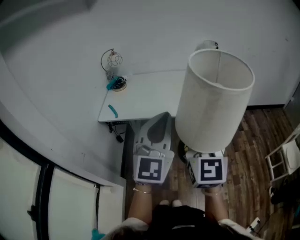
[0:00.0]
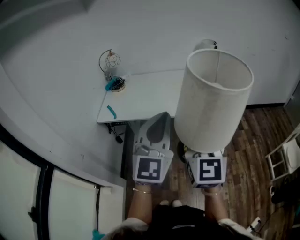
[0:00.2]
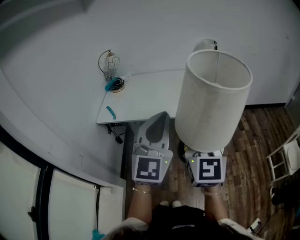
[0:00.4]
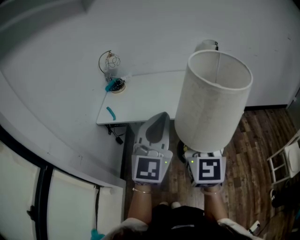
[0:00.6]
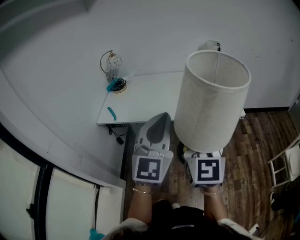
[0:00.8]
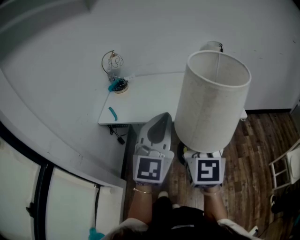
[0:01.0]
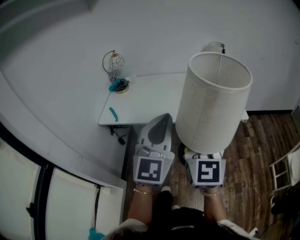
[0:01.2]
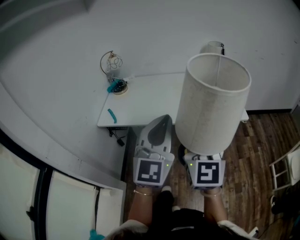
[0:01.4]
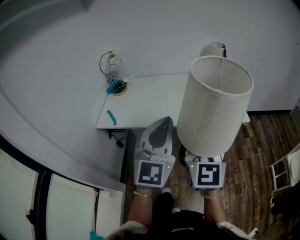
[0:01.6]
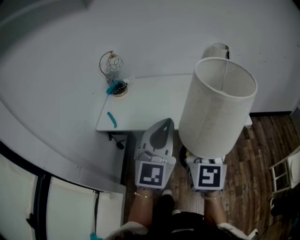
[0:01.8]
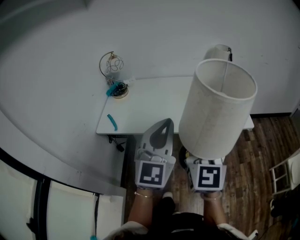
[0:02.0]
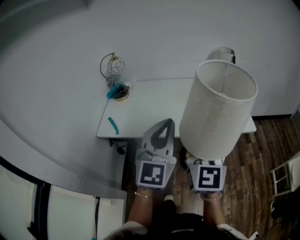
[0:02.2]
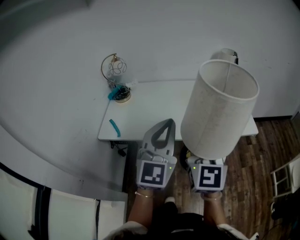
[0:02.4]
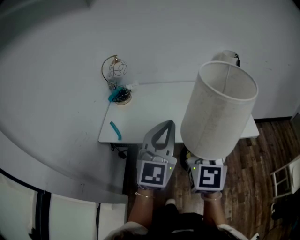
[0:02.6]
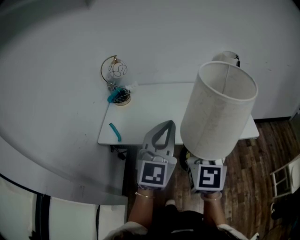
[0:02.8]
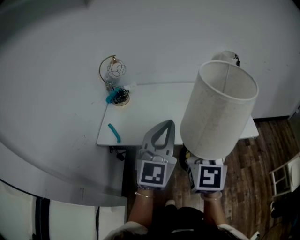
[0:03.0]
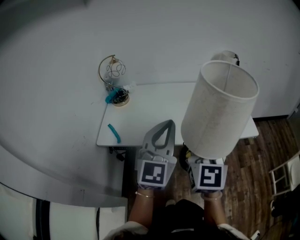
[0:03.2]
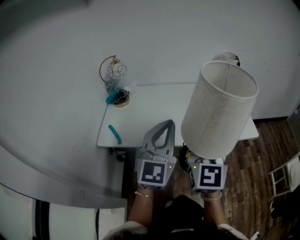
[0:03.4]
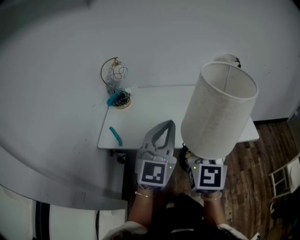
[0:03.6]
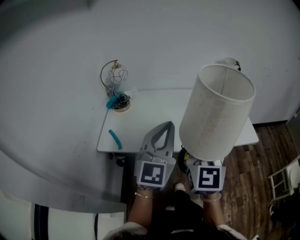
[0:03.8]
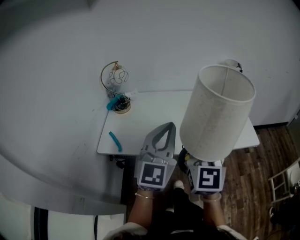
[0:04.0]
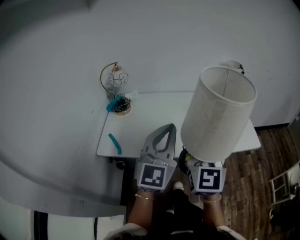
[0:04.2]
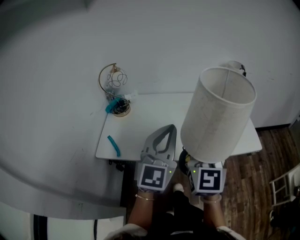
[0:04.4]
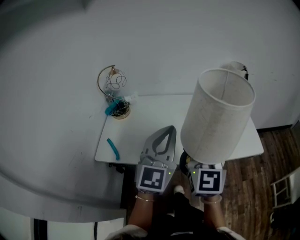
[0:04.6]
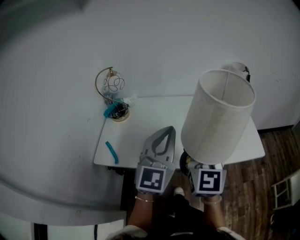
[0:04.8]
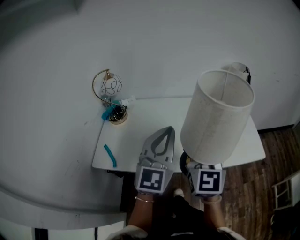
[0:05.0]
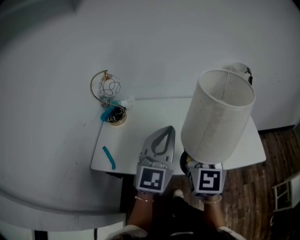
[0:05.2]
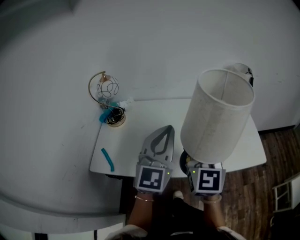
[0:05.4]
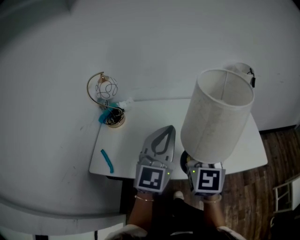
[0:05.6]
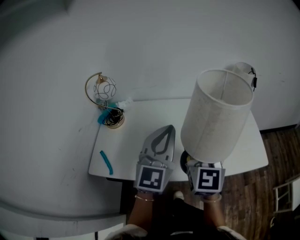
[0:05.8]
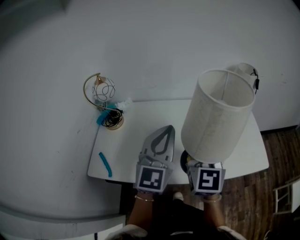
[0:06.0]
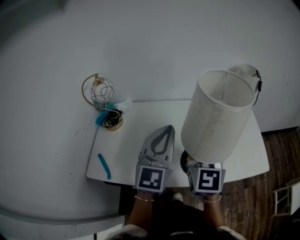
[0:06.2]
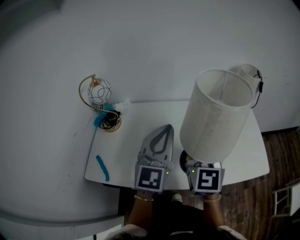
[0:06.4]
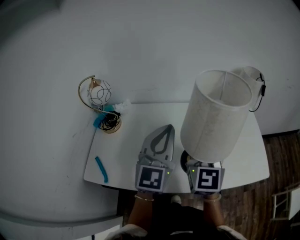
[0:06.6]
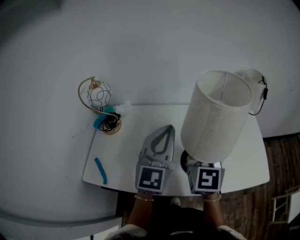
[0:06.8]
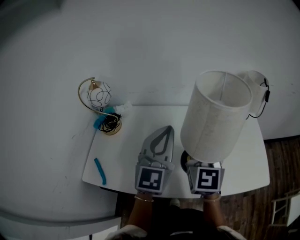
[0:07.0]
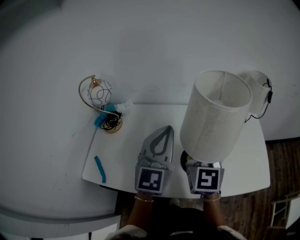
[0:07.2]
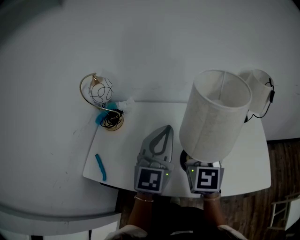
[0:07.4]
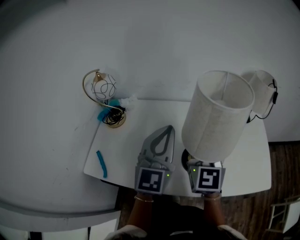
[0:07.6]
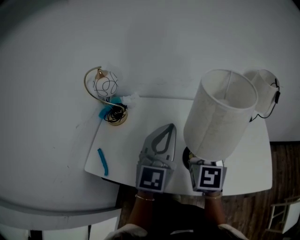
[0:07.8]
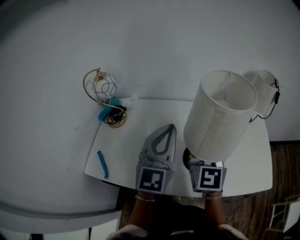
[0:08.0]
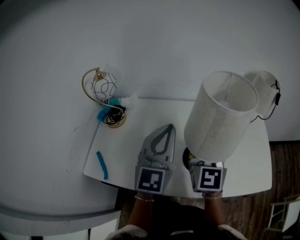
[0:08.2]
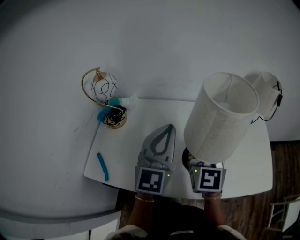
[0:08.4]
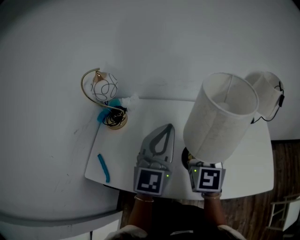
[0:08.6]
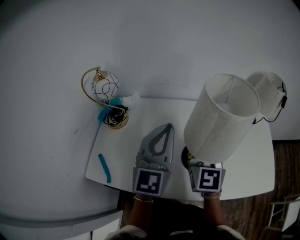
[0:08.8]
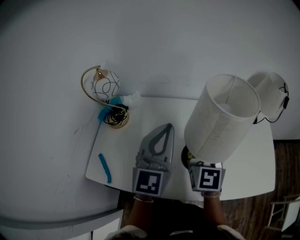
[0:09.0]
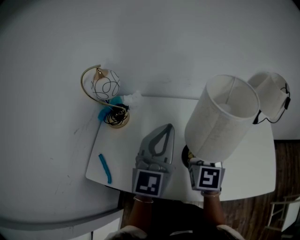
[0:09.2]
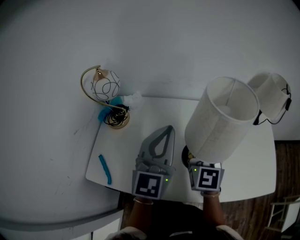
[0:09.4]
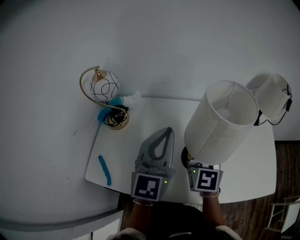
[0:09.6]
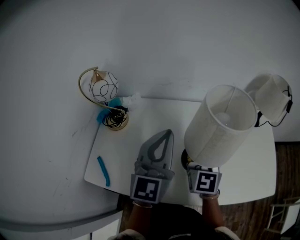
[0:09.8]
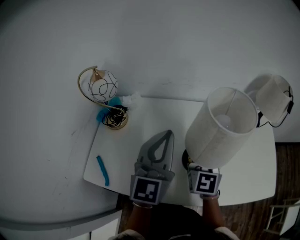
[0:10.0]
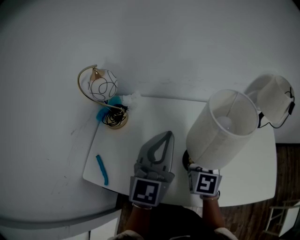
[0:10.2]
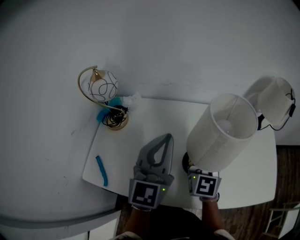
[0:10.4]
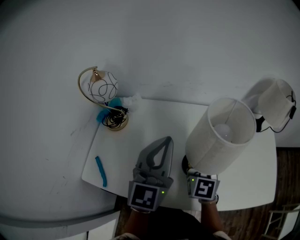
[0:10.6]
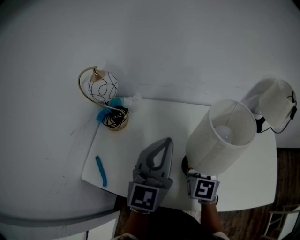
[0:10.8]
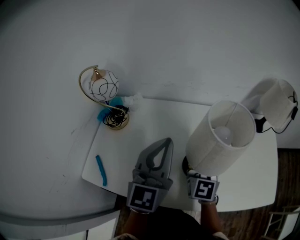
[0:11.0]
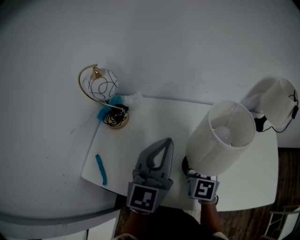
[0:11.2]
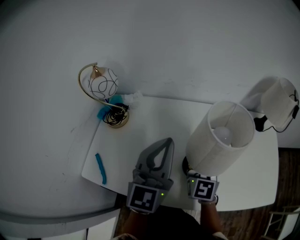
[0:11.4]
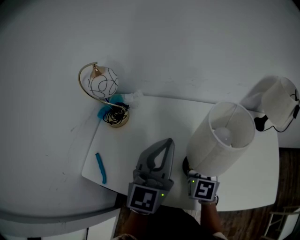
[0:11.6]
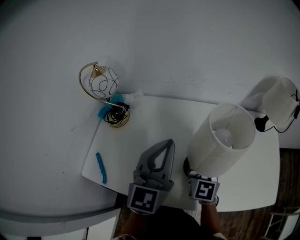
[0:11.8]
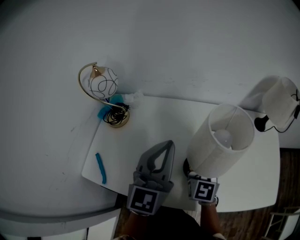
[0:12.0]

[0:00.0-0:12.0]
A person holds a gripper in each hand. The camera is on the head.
0:00.0 to 0:01.6: The grippers both shift forward by roughly 10 cm.
0:01.6 to 0:03.0: Both grippers move forward and to the left, approximately 15 cm.
0:03.0 to 0:04.4: Both grippers travel together forward, roughly 5 cm.
0:04.4 to 0:06.0: Both grippers travel together forward, some 15 cm.
0:06.0 to 0:07.6: Both grippers travel together forward, approximately 10 cm.
0:07.6 to 0:09.0: The left gripper travels to the left by approximately 5 cm. The right gripper ends up about 5 cm from where it was.
0:09.0 to 0:10.4: The right gripper goes roughly 5 cm downward.
0:10.4 to 0:12.0: The grippers move only a little.

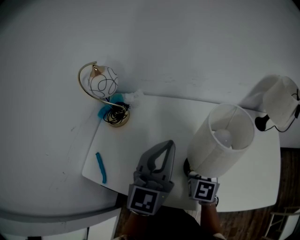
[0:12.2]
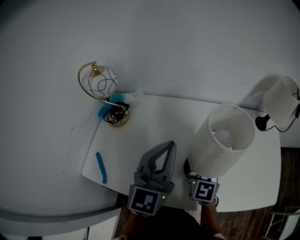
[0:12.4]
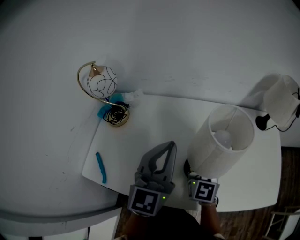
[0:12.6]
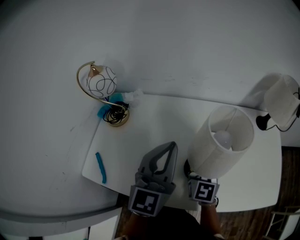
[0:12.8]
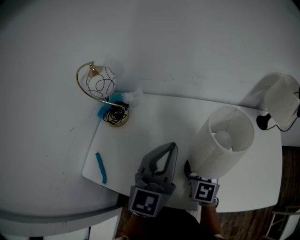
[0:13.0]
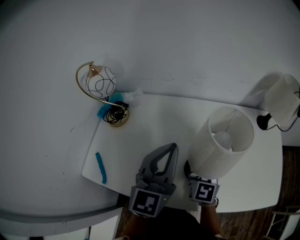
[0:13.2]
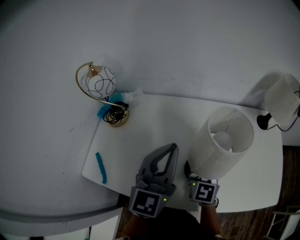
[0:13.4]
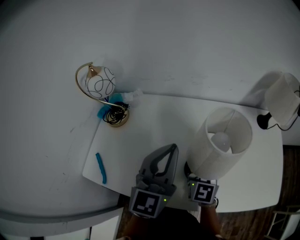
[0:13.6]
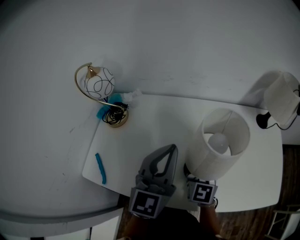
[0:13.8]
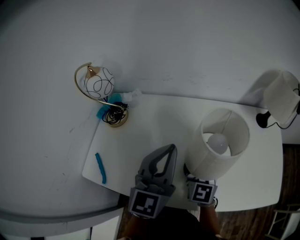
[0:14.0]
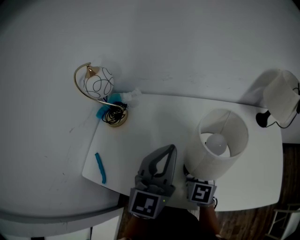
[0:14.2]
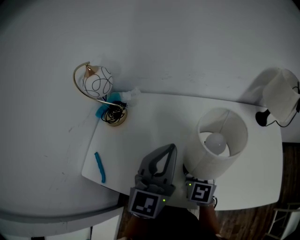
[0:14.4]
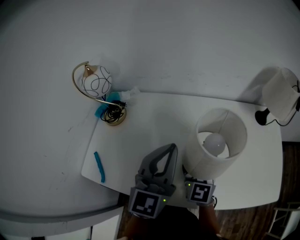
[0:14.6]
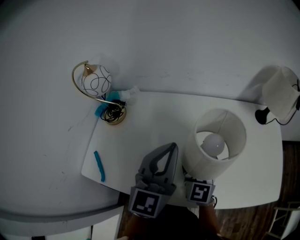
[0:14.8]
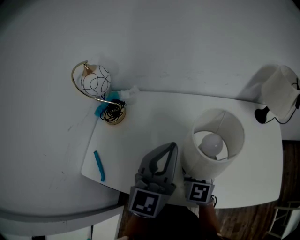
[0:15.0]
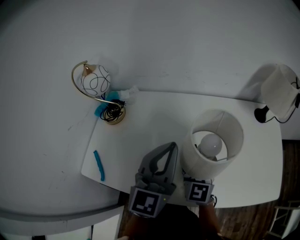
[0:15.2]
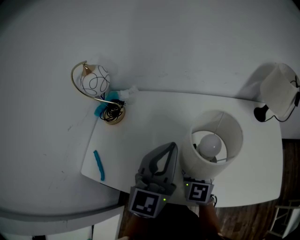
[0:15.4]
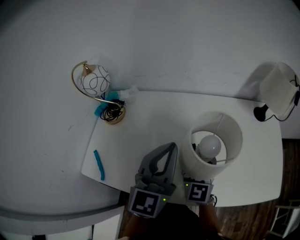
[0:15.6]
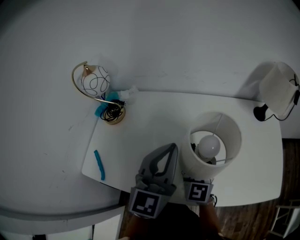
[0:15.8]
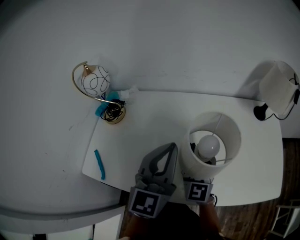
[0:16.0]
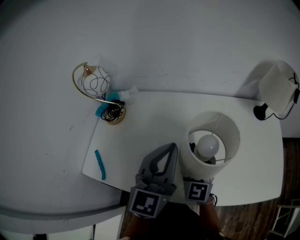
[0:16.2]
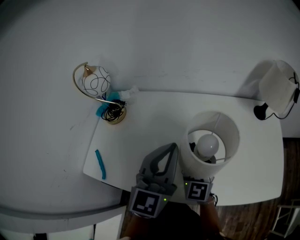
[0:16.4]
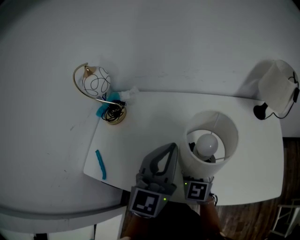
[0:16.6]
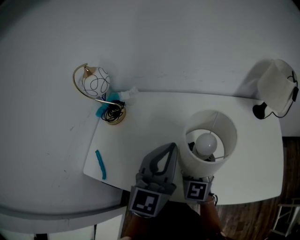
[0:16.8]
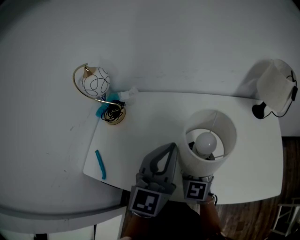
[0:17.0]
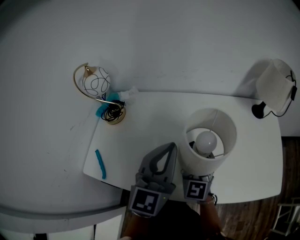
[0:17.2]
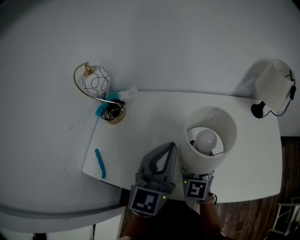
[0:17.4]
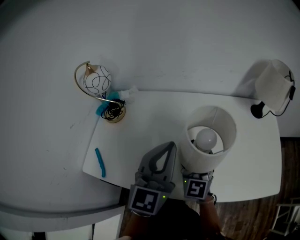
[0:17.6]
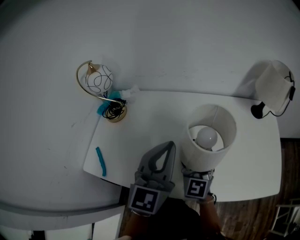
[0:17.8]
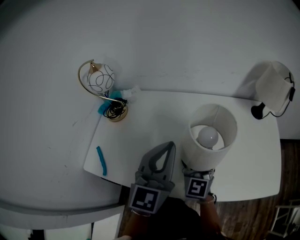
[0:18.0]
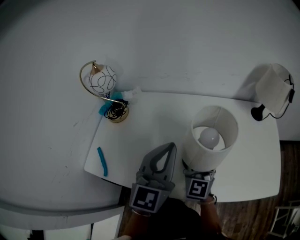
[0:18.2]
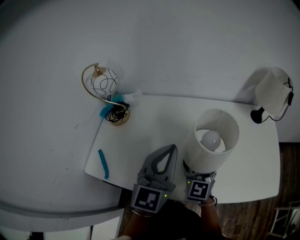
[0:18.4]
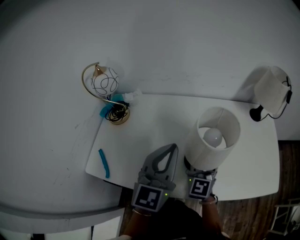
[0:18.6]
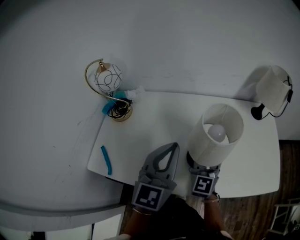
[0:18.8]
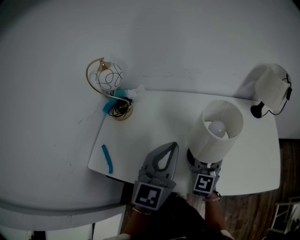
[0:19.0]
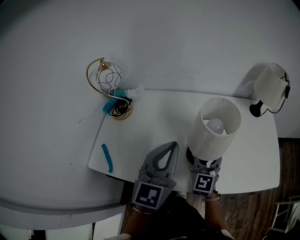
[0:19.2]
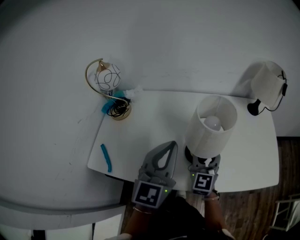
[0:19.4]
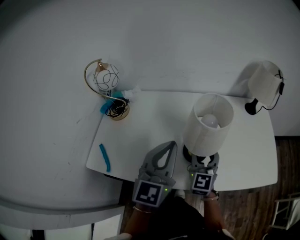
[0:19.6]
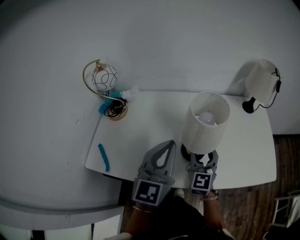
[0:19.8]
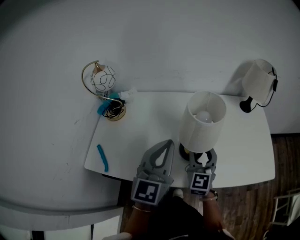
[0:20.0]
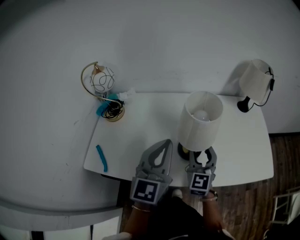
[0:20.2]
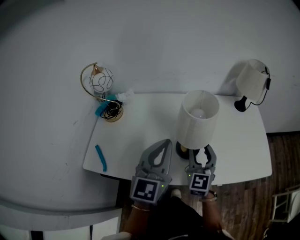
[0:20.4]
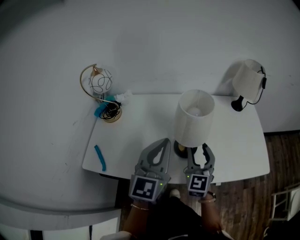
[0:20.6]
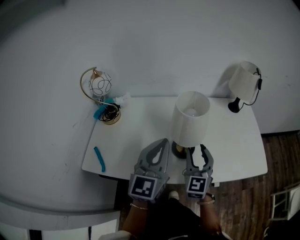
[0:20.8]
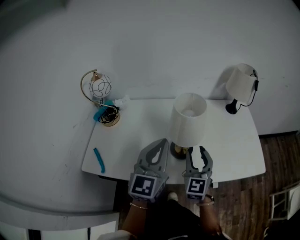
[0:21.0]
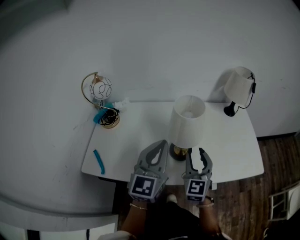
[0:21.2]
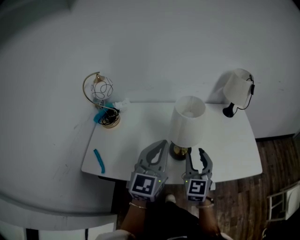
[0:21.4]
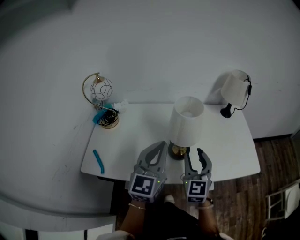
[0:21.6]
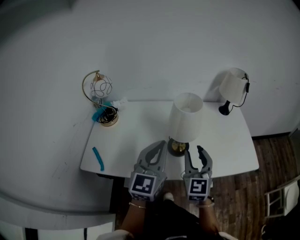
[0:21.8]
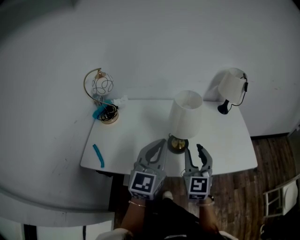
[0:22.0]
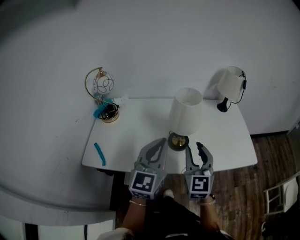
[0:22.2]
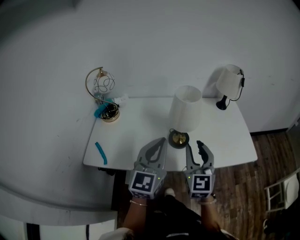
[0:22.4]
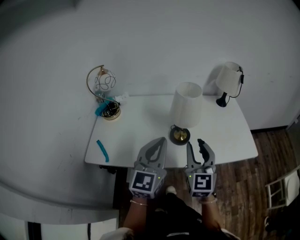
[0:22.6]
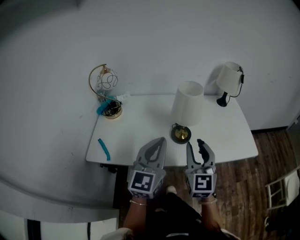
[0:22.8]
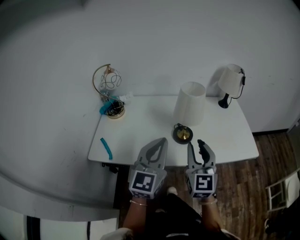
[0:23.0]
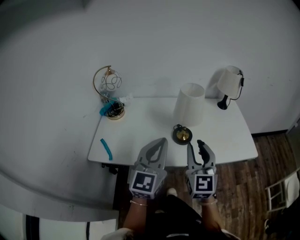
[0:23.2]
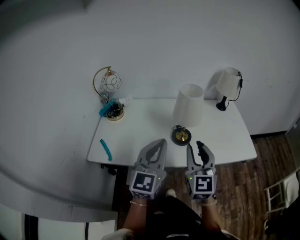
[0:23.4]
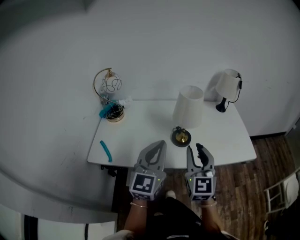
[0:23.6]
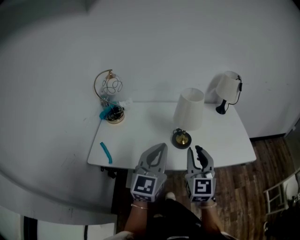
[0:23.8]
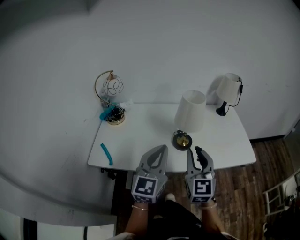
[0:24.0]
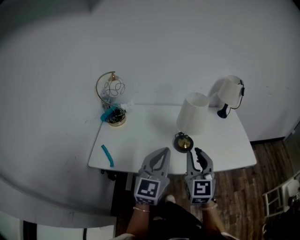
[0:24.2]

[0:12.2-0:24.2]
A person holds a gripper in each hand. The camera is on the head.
0:12.2 to 0:16.6: The grippers stay close to where they were, moving slightly.
0:16.6 to 0:18.2: There are only small adjustments of the grippers.
0:18.2 to 0:19.8: The grippers move only a little.
0:19.8 to 0:21.2: The left gripper ends up approximately 5 cm from where it was; the right gripper travels backward by approximately 5 cm.
0:21.2 to 0:22.6: The right gripper heads backward and upward, covering some 15 cm. The left gripper moves backward, some 10 cm.
0:22.6 to 0:24.2: The right gripper shifts by about 5 cm.
